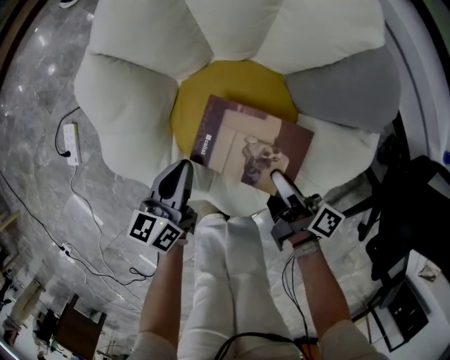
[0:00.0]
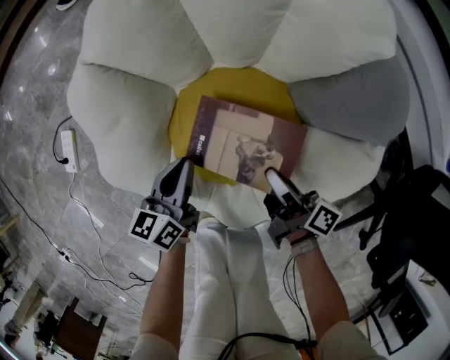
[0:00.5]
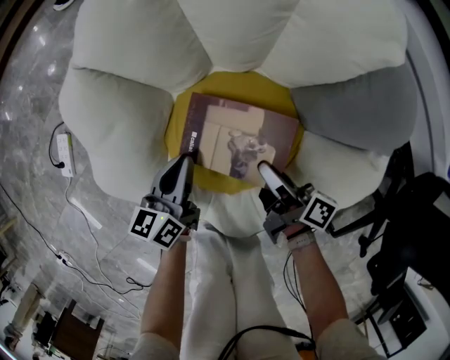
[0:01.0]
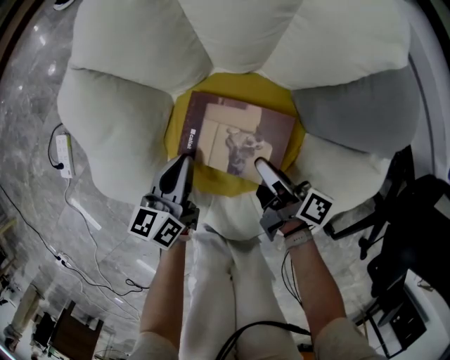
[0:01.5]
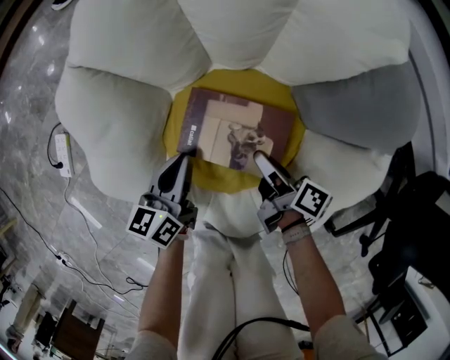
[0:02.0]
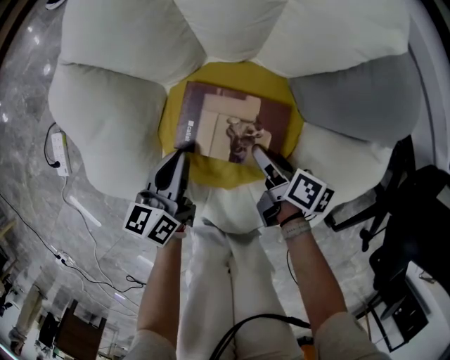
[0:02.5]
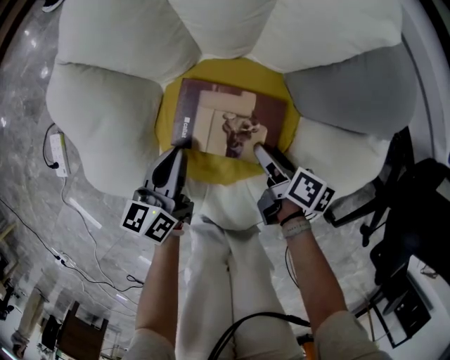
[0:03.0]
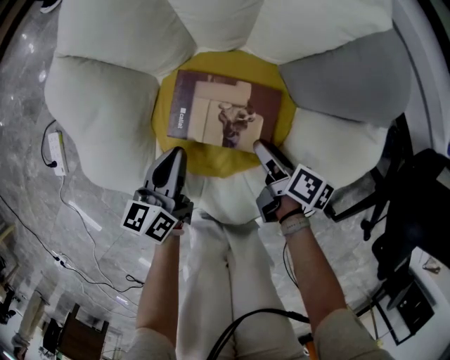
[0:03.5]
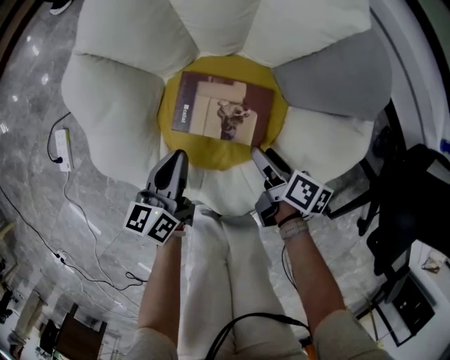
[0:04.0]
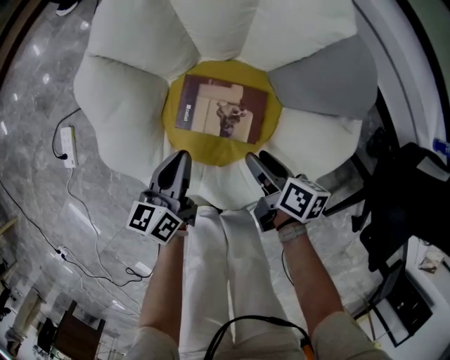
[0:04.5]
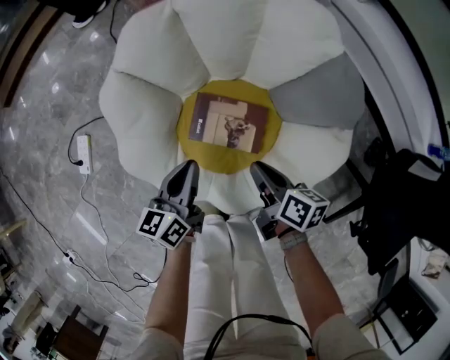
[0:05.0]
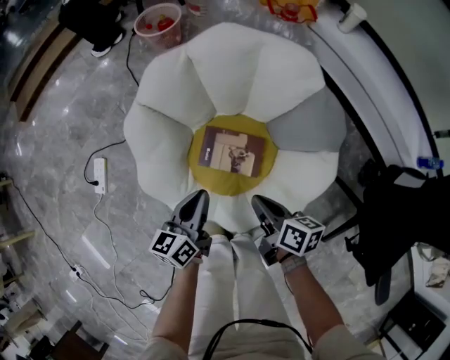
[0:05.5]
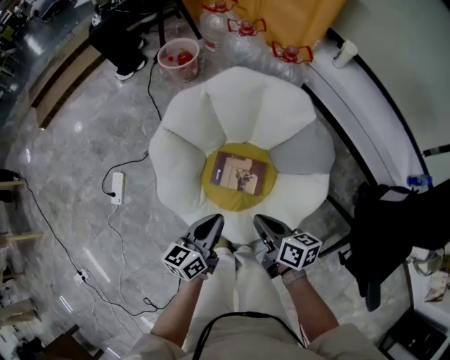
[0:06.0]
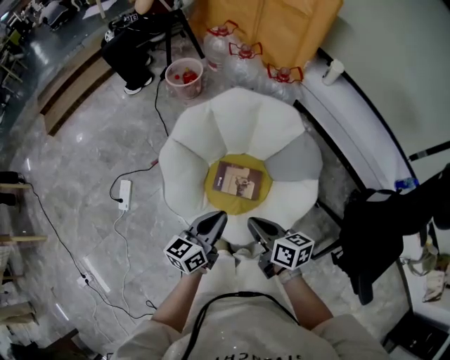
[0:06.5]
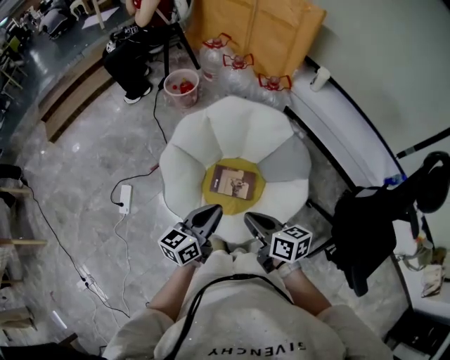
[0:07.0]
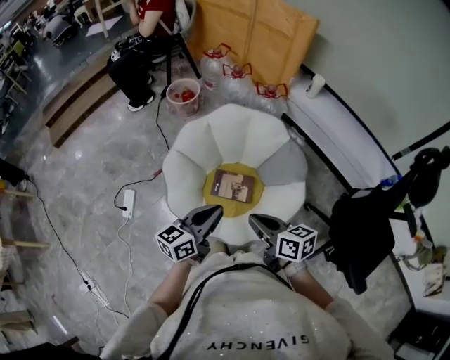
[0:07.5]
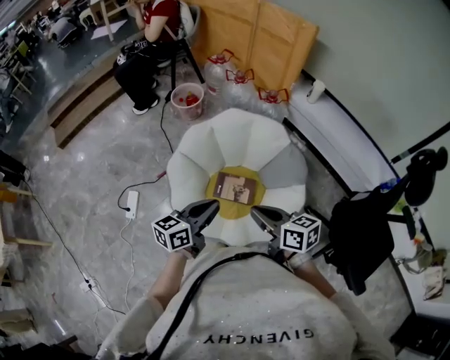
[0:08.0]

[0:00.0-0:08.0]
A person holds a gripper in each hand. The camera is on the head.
0:00.0 to 0:02.0: The left gripper goes some 5 cm downward.
0:02.0 to 0:04.0: The left gripper shifts by some 5 cm.
0:04.0 to 0:06.0: The left gripper travels upward by about 25 cm.
0:06.0 to 0:08.0: The left gripper is displaced upward by about 20 cm.

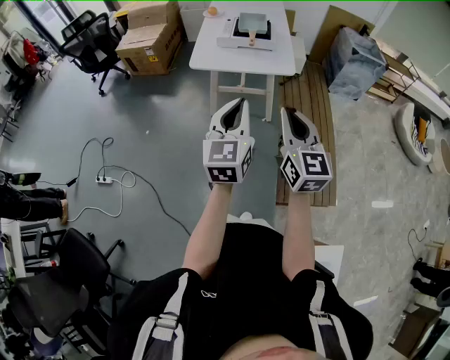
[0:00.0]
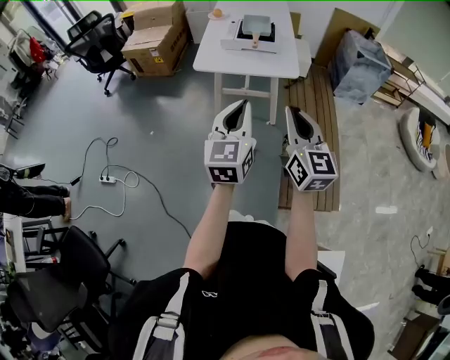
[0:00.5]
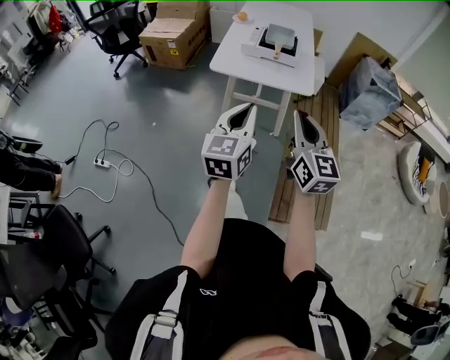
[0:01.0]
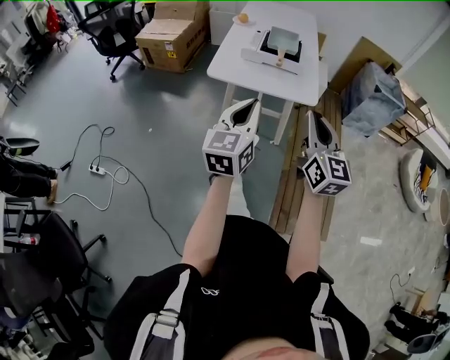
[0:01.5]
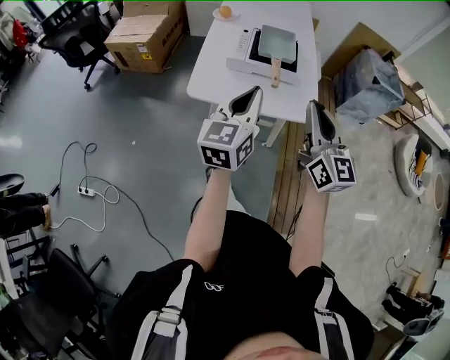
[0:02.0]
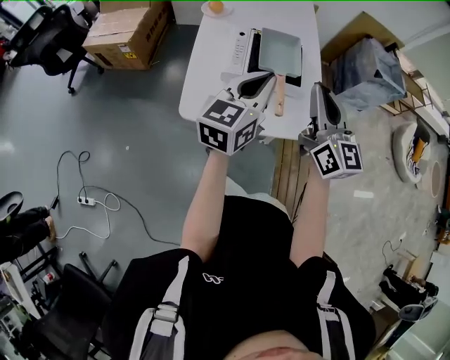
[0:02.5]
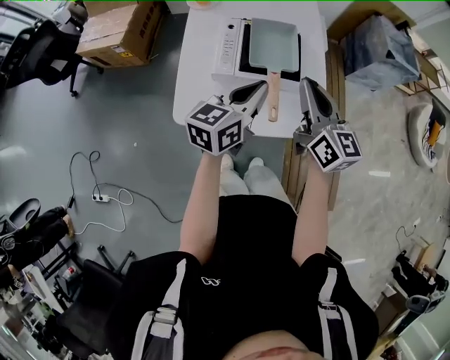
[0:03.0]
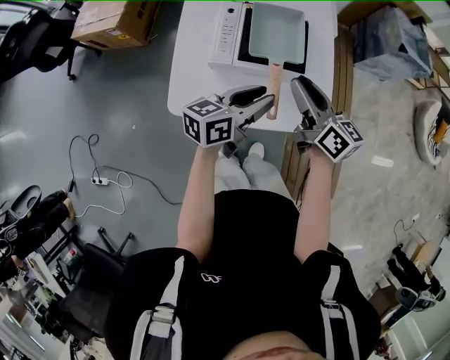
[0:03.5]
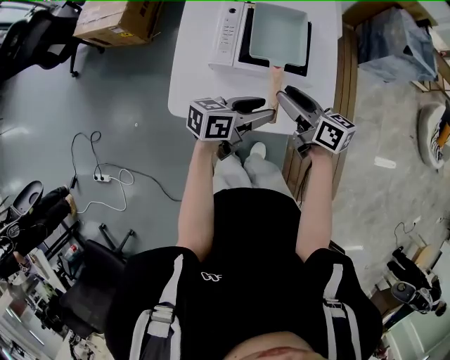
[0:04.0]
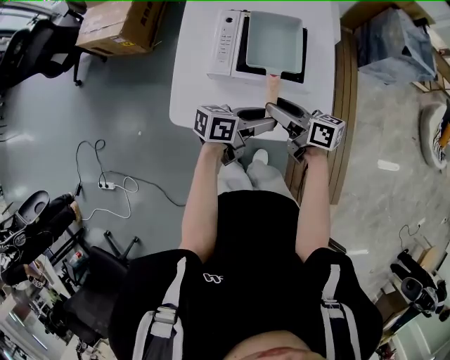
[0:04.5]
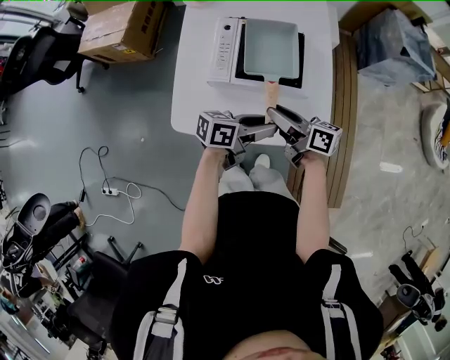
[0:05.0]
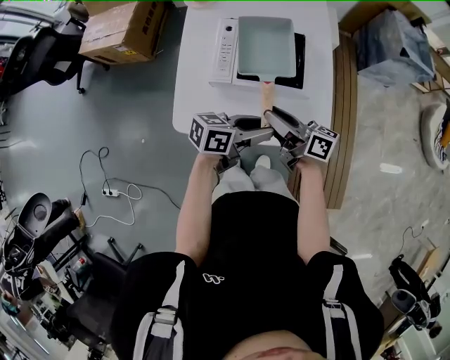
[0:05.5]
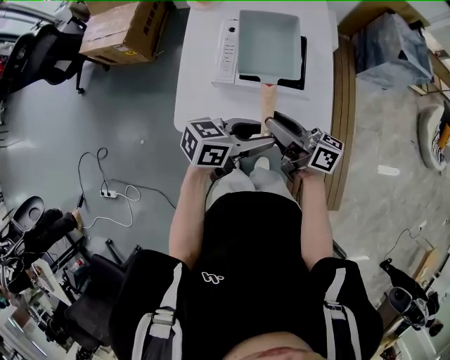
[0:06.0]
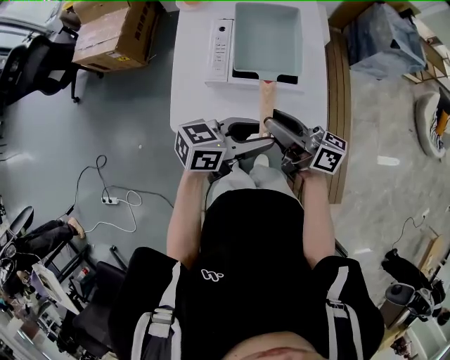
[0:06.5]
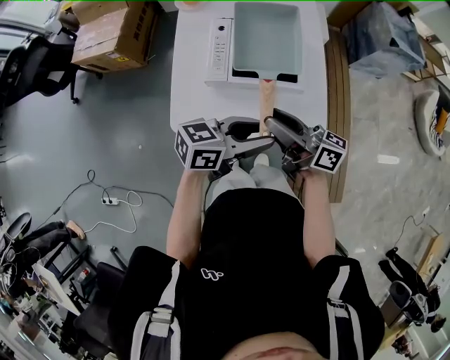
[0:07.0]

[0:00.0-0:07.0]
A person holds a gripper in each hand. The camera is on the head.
0:00.0 to 0:02.0: The grippers both shift forward by about 35 cm.
0:02.0 to 0:03.5: Both grippers move forward and downward, about 30 cm. The right gripper rotates approximately 40 degrees, and opens its fingers. The left gripper rotates some 40 degrees, and opens up.
0:03.5 to 0:05.0: Both grippers travel together downward, approximately 10 cm. The left gripper changes its angle by roughly 20 degrees; the right gripper swivels some 30 degrees.
0:05.0 to 0:07.0: The two grippers go about 10 cm upward.

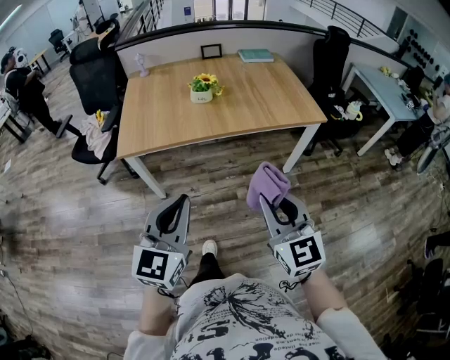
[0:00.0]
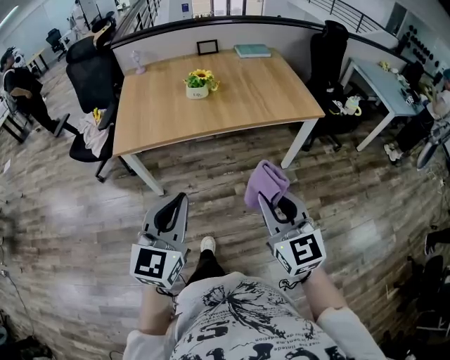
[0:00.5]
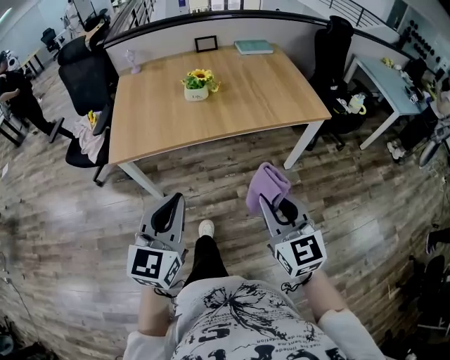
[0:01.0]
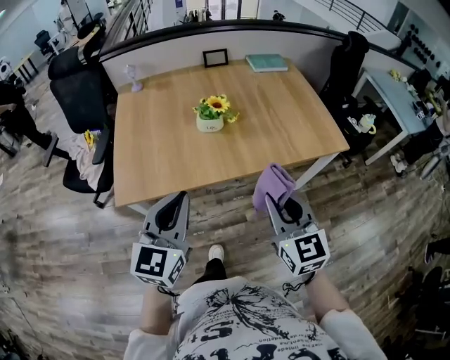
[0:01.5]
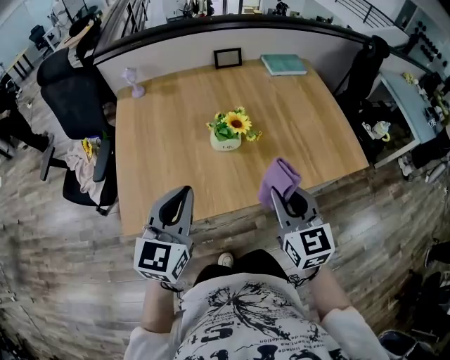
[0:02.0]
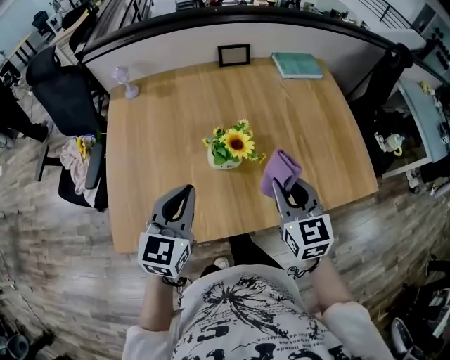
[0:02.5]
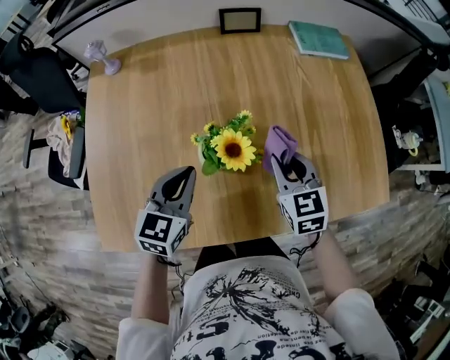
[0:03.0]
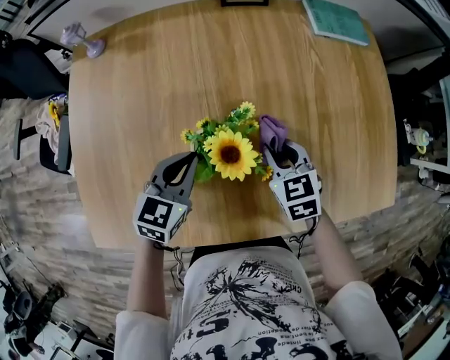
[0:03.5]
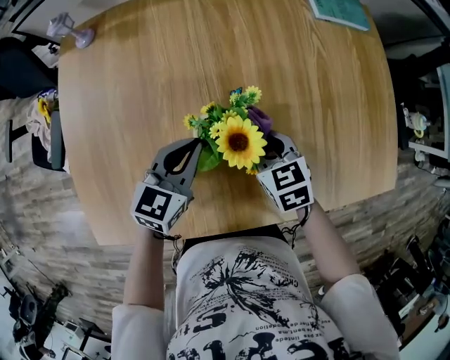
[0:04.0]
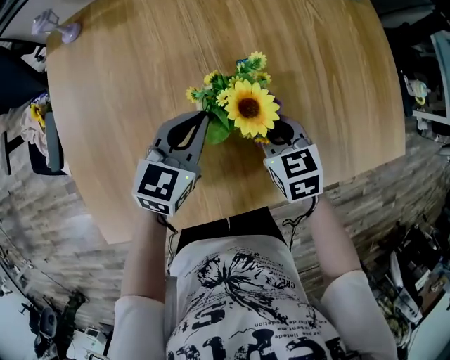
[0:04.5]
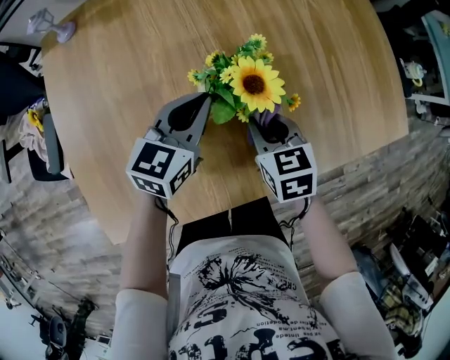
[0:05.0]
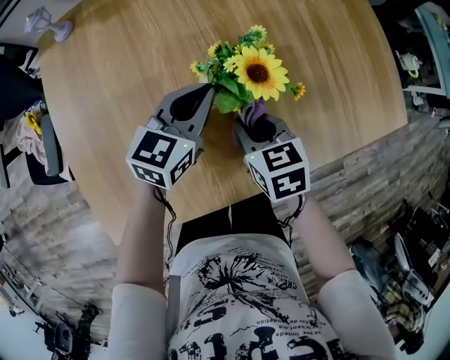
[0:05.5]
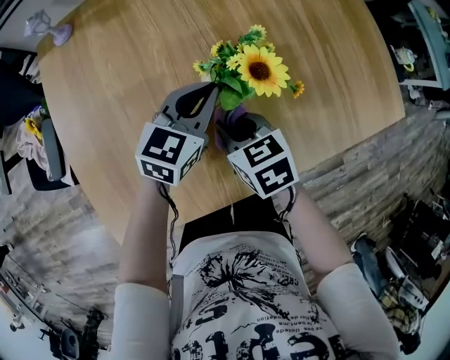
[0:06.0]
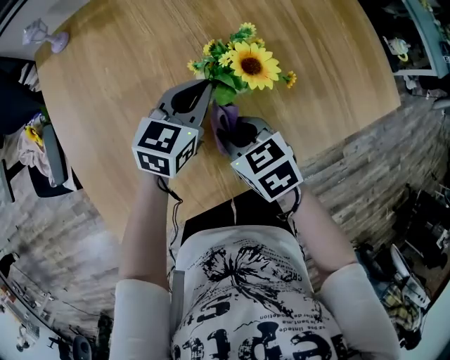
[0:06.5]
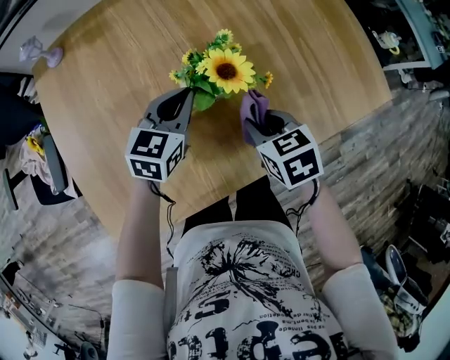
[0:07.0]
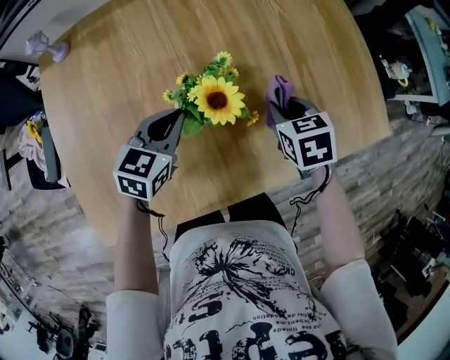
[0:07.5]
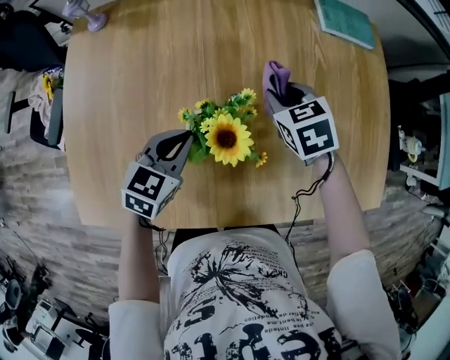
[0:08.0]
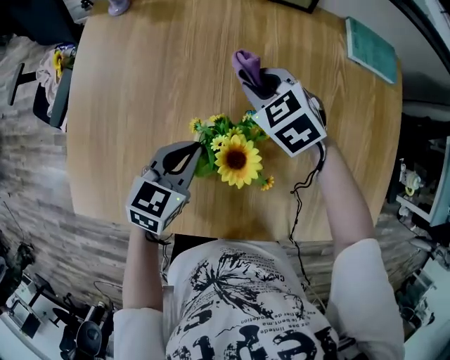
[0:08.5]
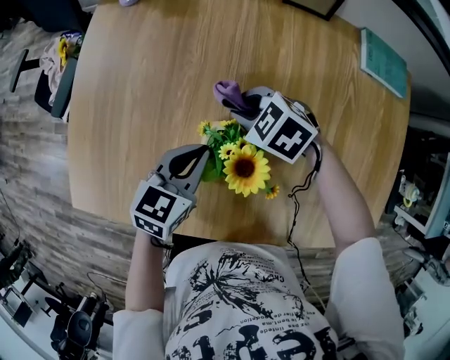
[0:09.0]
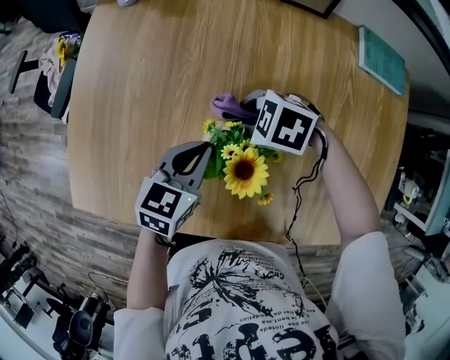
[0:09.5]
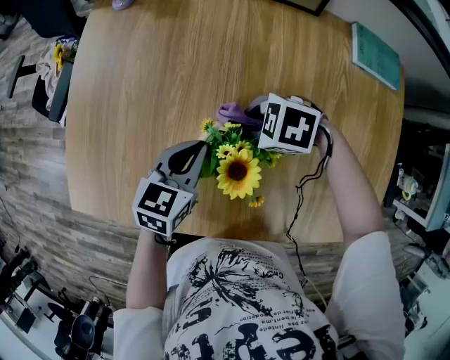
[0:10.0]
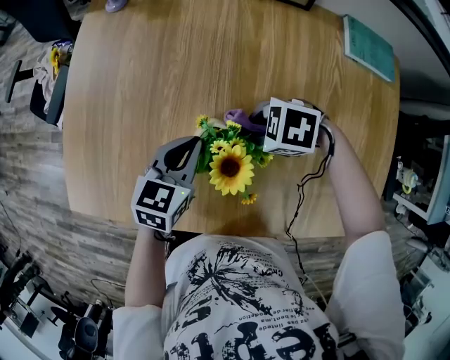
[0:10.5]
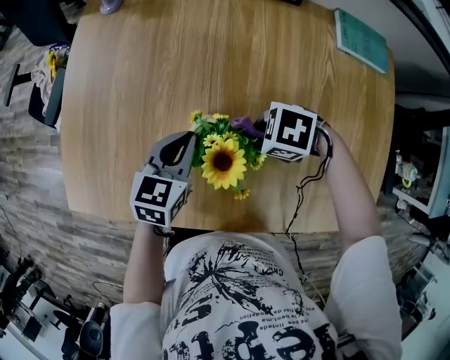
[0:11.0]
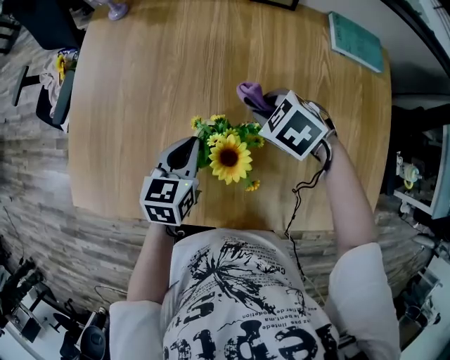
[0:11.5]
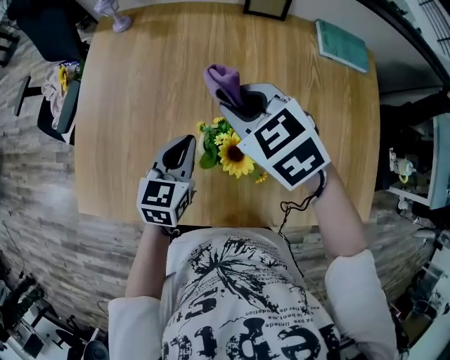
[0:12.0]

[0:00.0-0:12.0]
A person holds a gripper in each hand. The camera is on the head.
0:00.0 to 0:02.0: The pair of grippers is taken forward, roughly 40 cm.
0:02.0 to 0:04.0: The grippers both shift forward and downward by about 35 cm. The left gripper swivels approximately 20 degrees, while the right gripper tips its fingers downward by about 30 degrees.
0:04.0 to 0:06.0: The right gripper travels to the left and backward by roughly 15 cm.
0:06.0 to 0:08.0: The left gripper changes its angle by about 20 degrees; the right gripper shifts about 25 cm forward and to the right, and changes its angle by approximately 20 degrees.
0:08.0 to 0:10.0: The left gripper rotates about 20 degrees, while the right gripper moves some 15 cm, and turns by roughly 70 degrees.
0:10.0 to 0:12.0: The left gripper changes place by approximately 5 cm. The right gripper moves upward, approximately 20 cm, and changes its angle by roughly 50 degrees.
